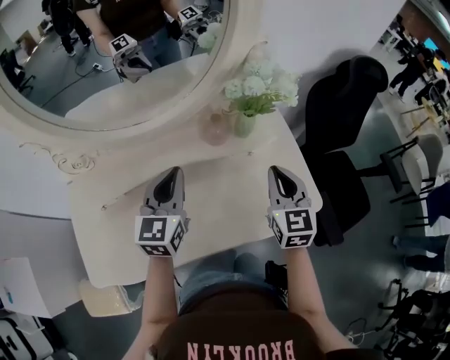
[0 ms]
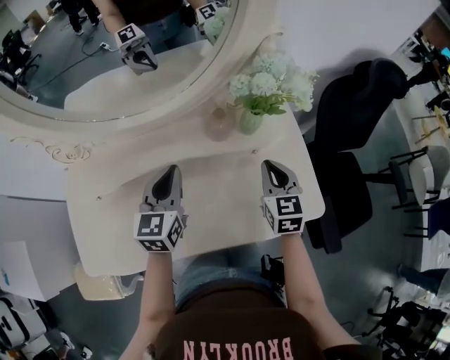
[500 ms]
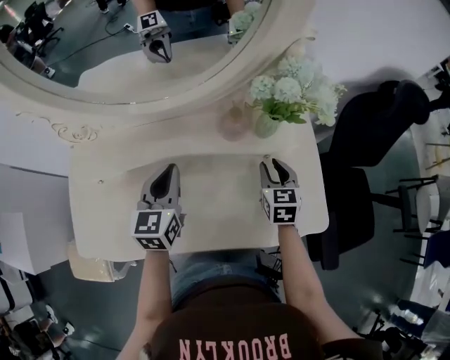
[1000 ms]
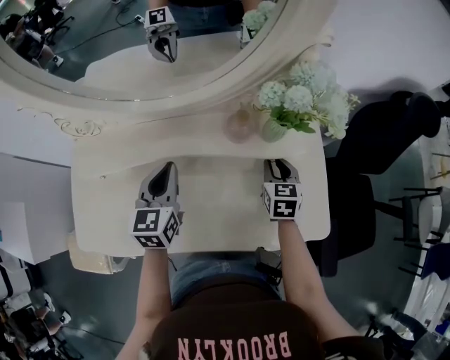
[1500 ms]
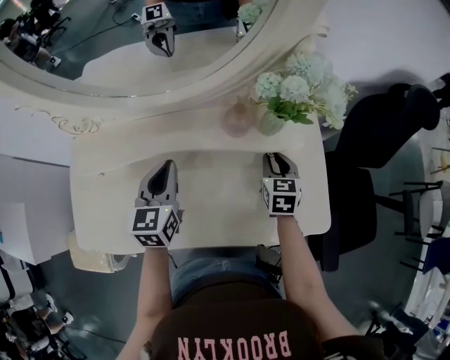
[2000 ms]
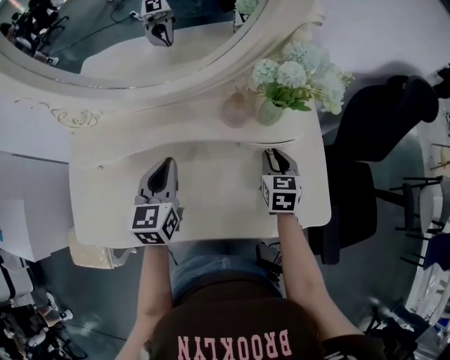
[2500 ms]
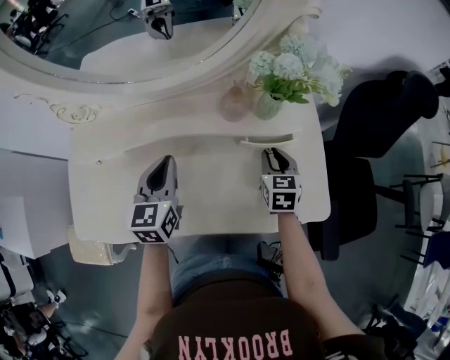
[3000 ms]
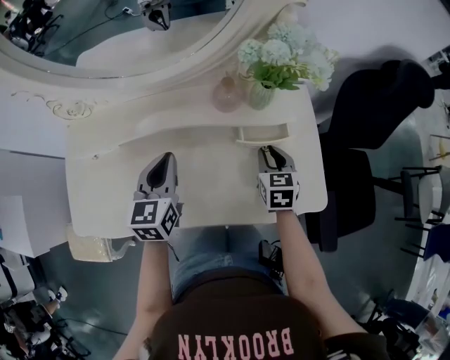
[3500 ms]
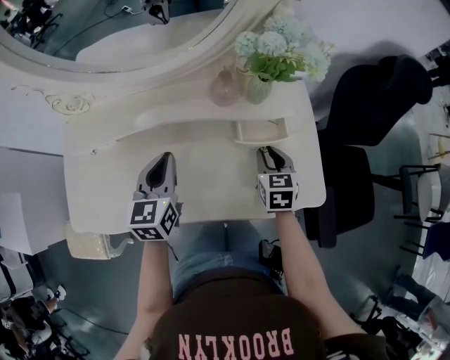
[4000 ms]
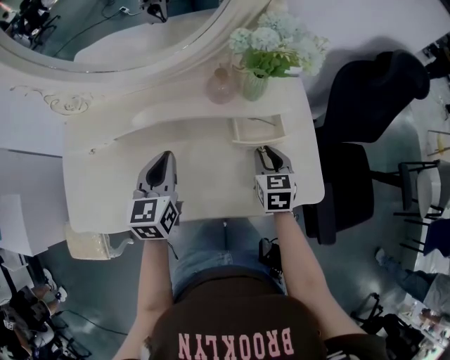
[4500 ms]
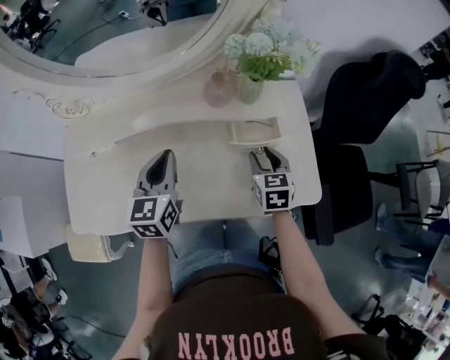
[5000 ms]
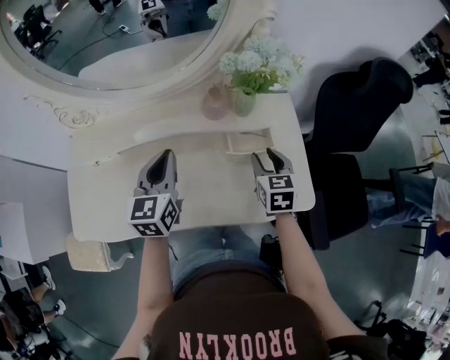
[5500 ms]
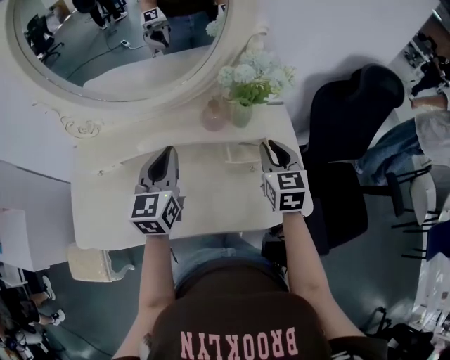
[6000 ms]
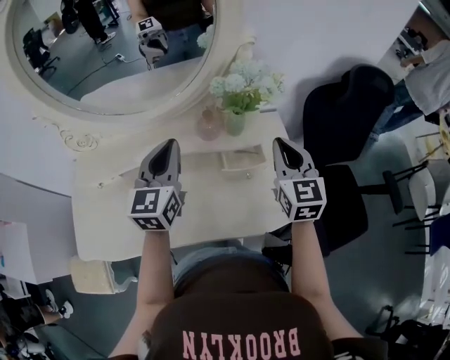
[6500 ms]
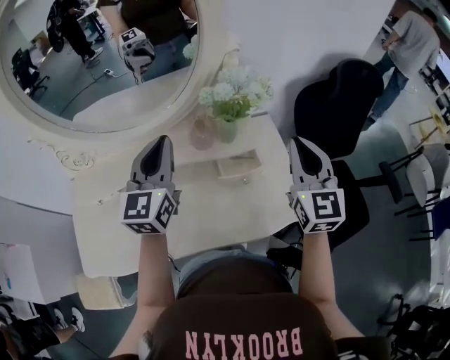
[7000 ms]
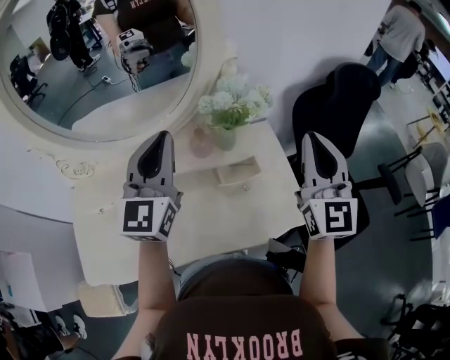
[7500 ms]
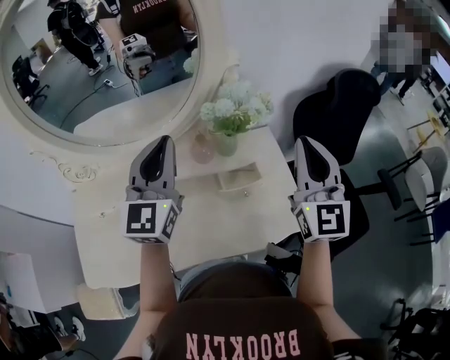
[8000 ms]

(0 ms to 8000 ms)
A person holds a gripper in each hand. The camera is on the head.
0 ms - 2000 ms: The right gripper goes some 20 cm downward and forward, and turns by some 20 degrees. The left gripper is displaced downward by some 10 cm.
2000 ms - 4000 ms: The grippers both shift backward by roughly 5 cm.
4000 ms - 6000 ms: The left gripper moves upward, roughly 10 cm; the right gripper travels upward by about 15 cm.
6000 ms - 8000 ms: Both grippers move upward, about 20 cm. The right gripper angles its fingers upward, by about 30 degrees; the left gripper swivels some 20 degrees.

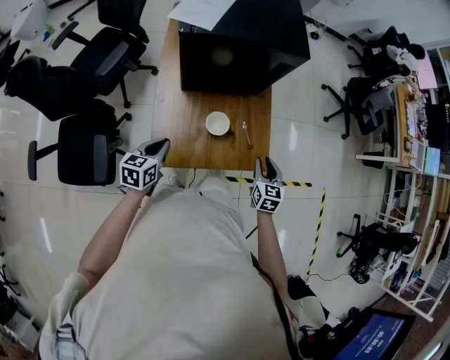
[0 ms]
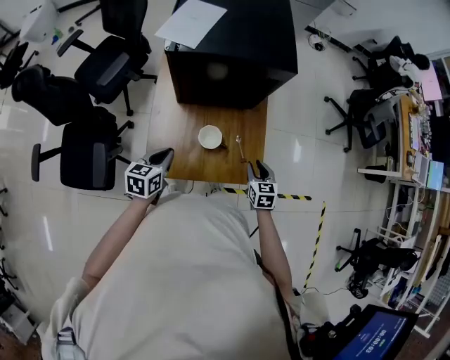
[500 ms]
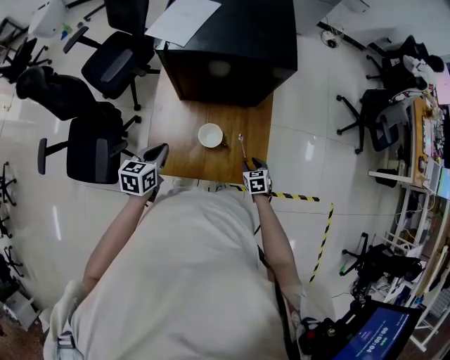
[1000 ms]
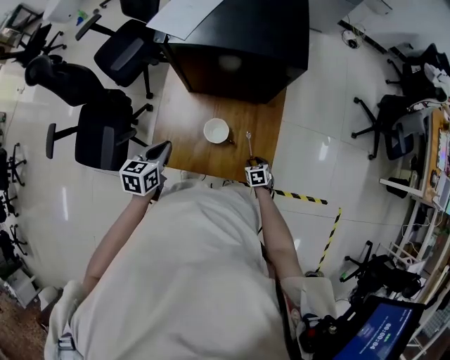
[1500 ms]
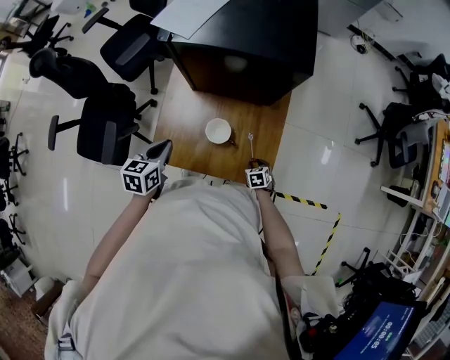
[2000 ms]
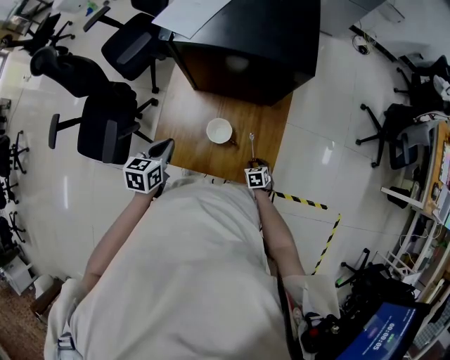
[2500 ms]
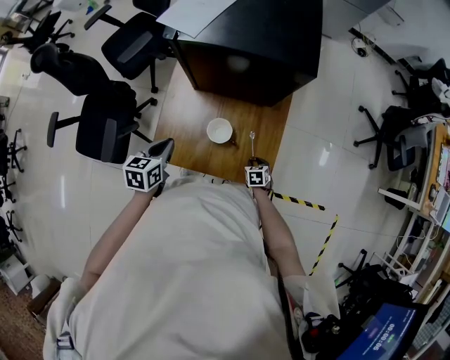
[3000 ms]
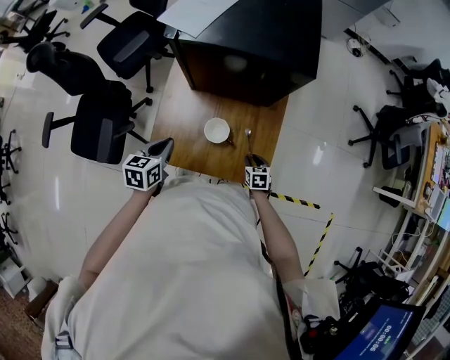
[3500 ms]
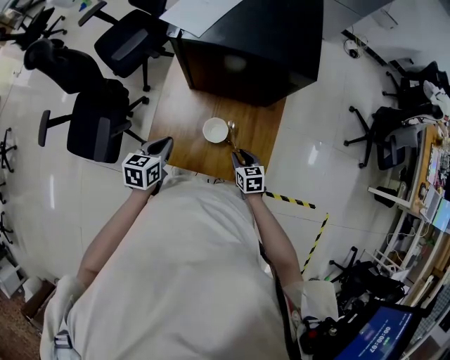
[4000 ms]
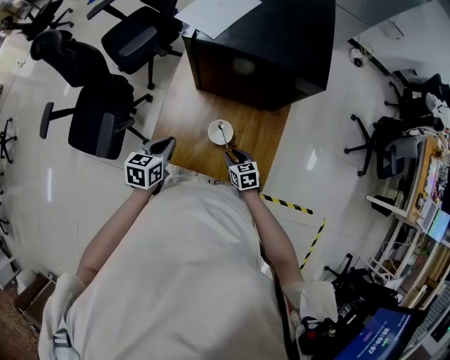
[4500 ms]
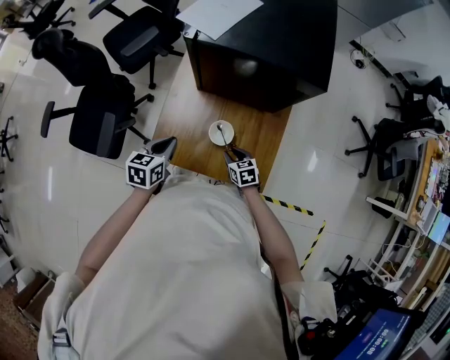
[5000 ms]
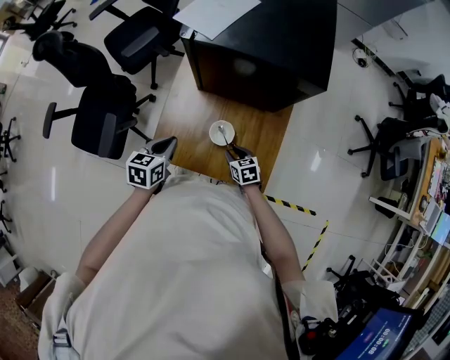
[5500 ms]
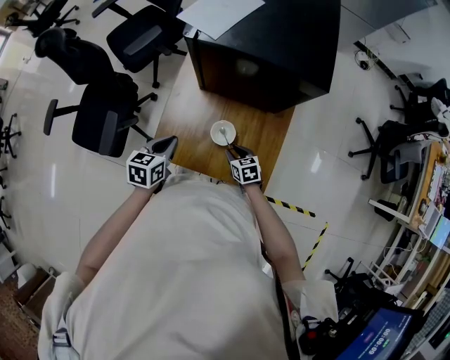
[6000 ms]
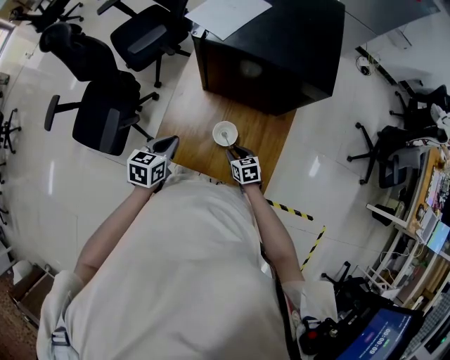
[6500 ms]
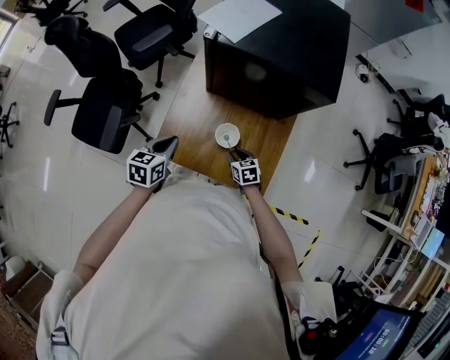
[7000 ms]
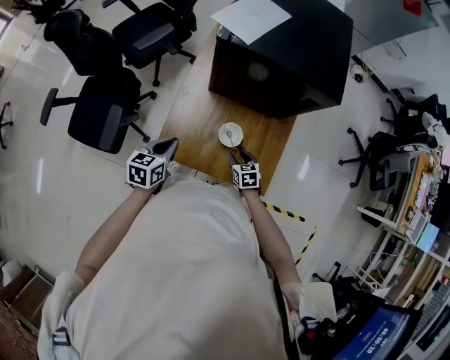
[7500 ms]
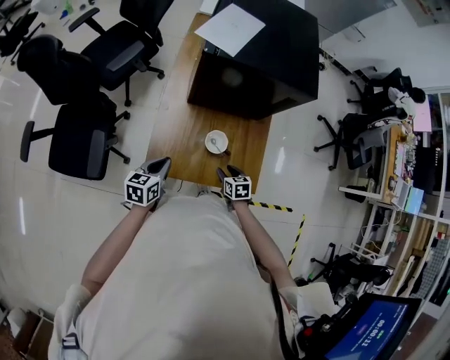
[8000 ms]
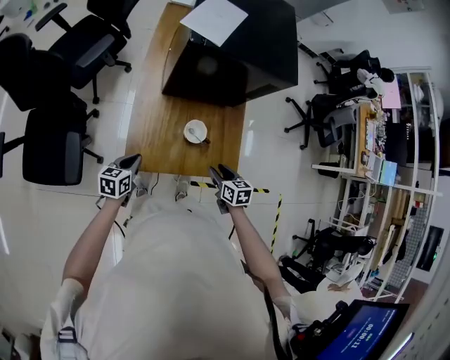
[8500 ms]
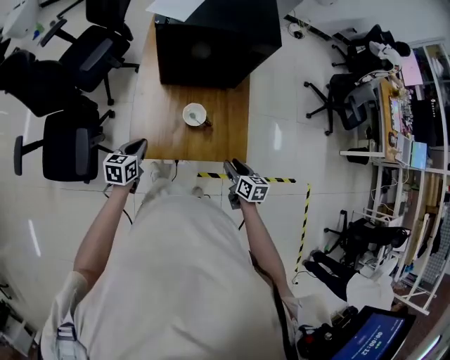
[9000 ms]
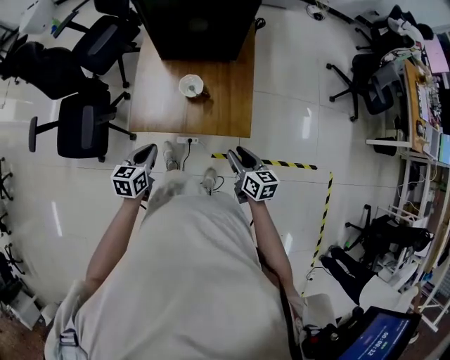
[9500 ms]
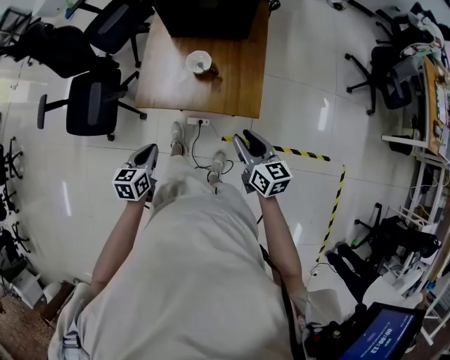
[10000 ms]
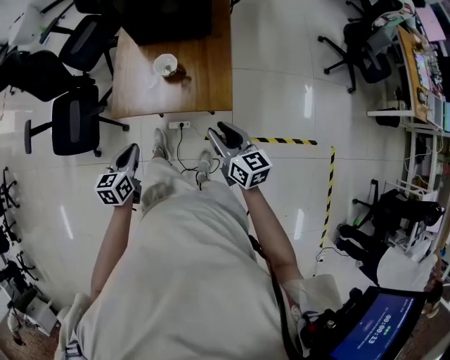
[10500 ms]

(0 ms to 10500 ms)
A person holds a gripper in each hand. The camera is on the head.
0 ms - 2000 ms: The right gripper goes roughly 25 cm downward, and points its fingers some 30 degrees further downward. The left gripper ends up some 5 cm from where it was.
2000 ms - 4000 ms: The right gripper goes roughly 15 cm upward and to the left, and rotates some 20 degrees.
4000 ms - 6500 ms: The right gripper is displaced to the left by roughly 5 cm.
6500 ms - 8500 ms: The left gripper heads to the left and downward, covering roughly 15 cm, while the right gripper goes roughly 15 cm upward and backward, and rotates about 30 degrees.
8500 ms - 10500 ms: The two grippers go some 25 cm backward, to the right and upward. The right gripper angles its fingers upward, by some 30 degrees.

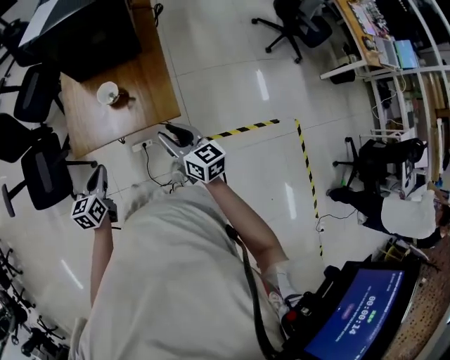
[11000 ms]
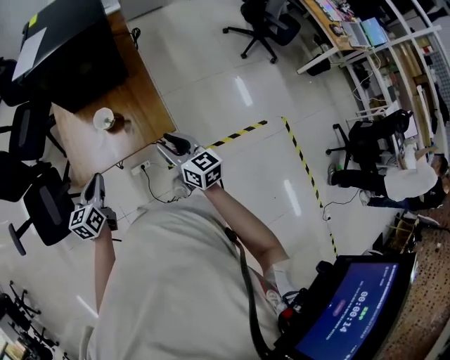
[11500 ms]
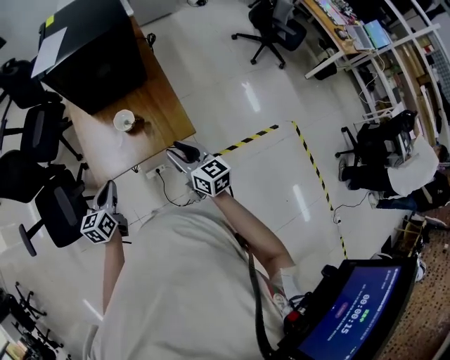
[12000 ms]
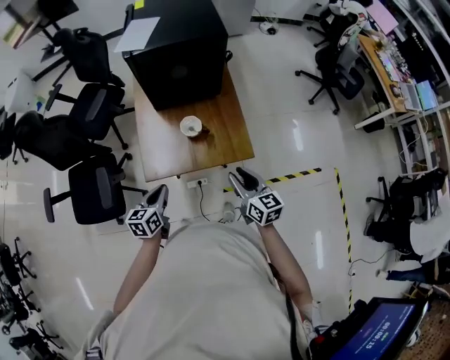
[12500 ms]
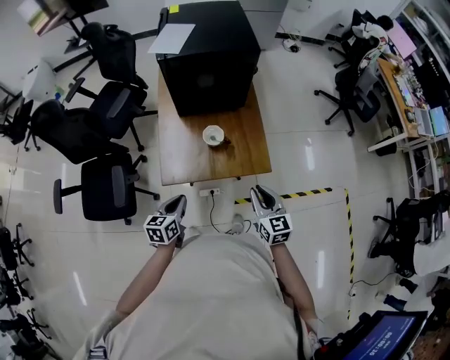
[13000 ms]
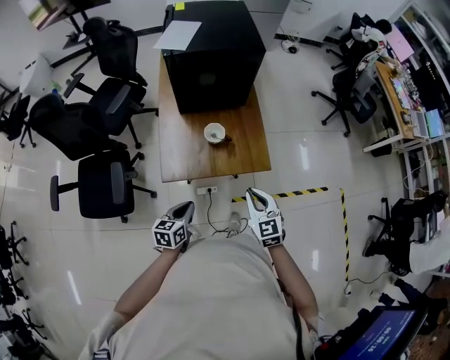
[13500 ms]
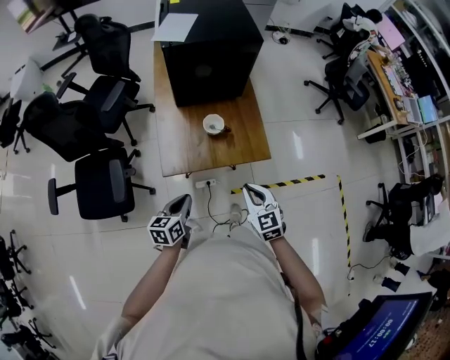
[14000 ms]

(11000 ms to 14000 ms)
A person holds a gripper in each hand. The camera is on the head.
11000 ms - 12500 ms: The two grippers go some 10 cm to the left.
12500 ms - 14000 ms: The left gripper is displaced backward by some 5 cm. The right gripper heads to the left and backward, covering some 10 cm, changes its angle by about 30 degrees, and closes up.

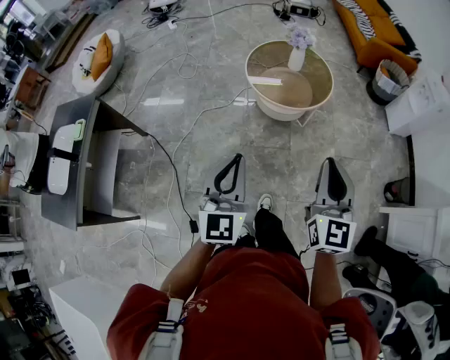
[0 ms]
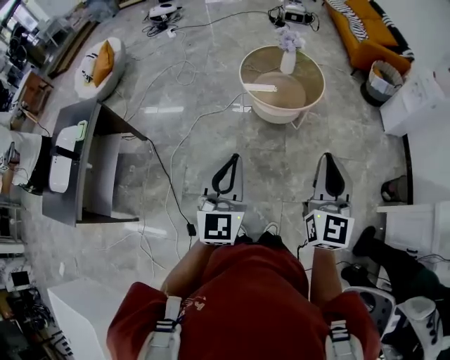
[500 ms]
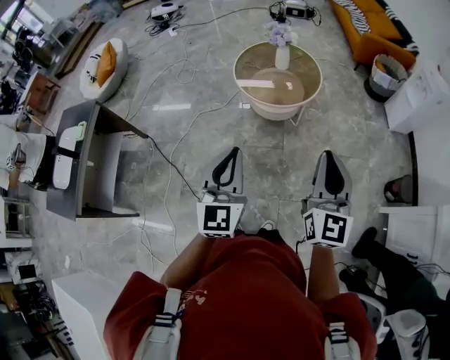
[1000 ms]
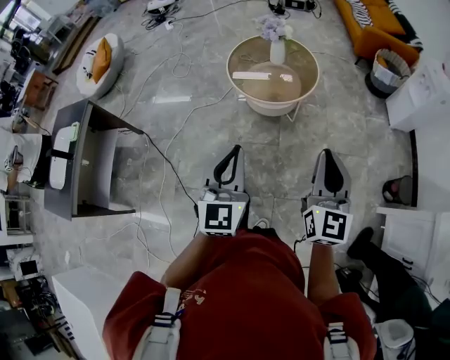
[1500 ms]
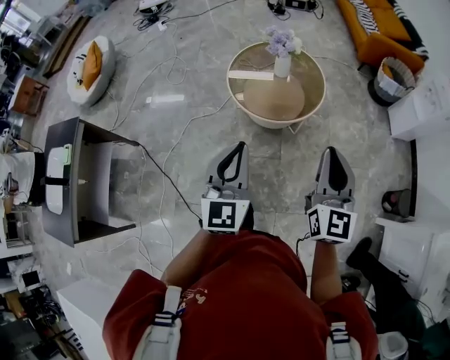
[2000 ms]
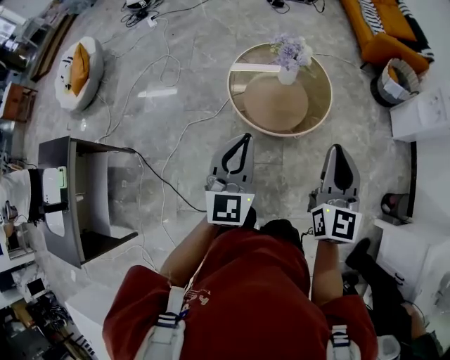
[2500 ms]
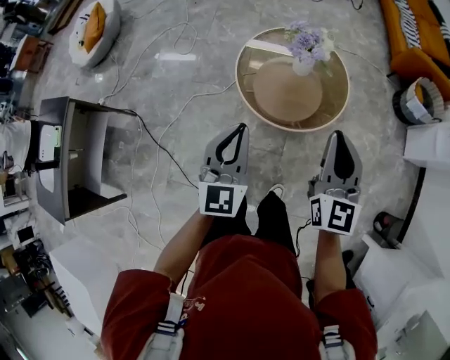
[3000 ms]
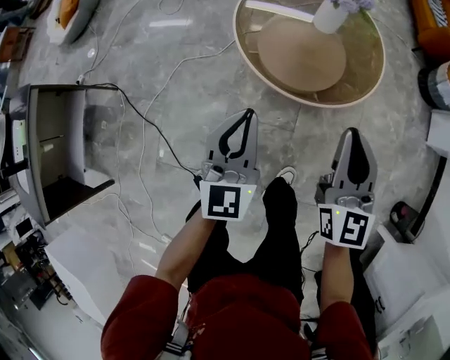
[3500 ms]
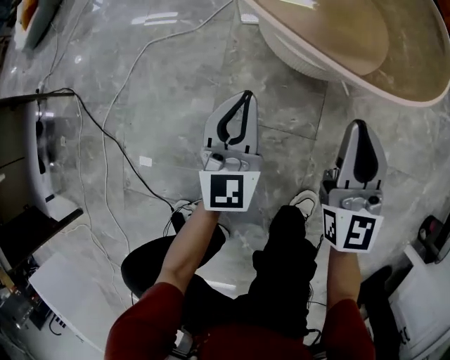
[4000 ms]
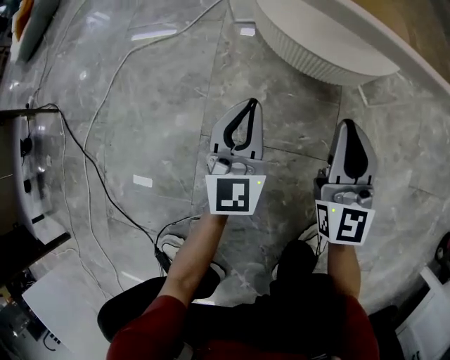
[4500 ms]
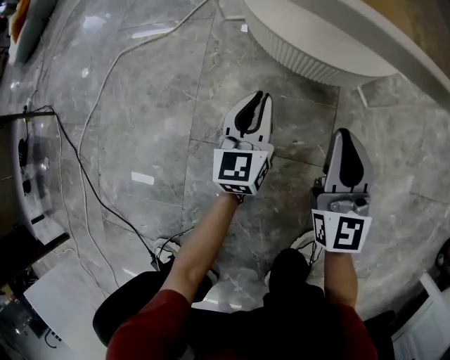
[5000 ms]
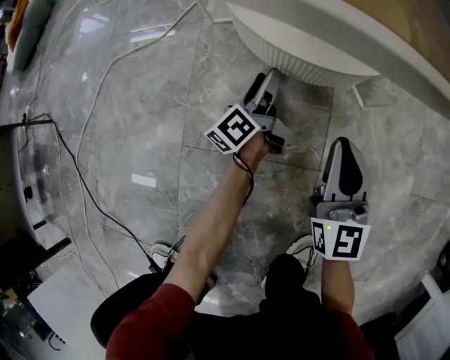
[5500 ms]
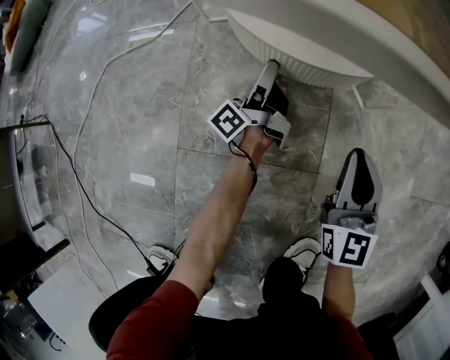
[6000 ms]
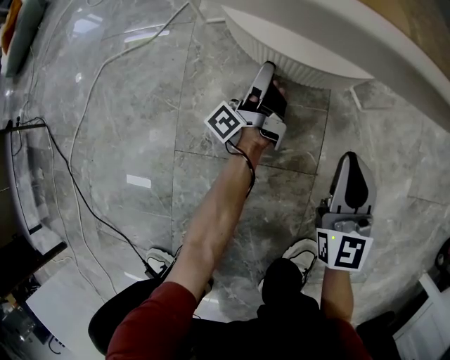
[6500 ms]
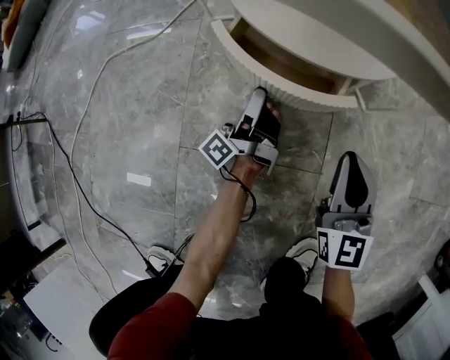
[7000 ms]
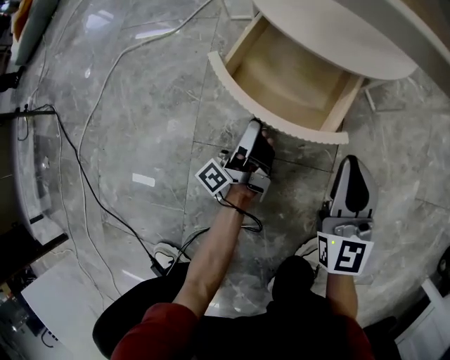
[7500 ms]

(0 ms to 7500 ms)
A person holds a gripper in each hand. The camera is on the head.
0 ms - 2000 ms: Both grippers travel together forward and to the right, about 20 cm.
2000 ms - 4000 ms: Both grippers move downward, approximately 60 cm.
4000 ms - 5500 ms: The right gripper goes approximately 25 cm downward. The left gripper shifts approximately 35 cm downward and forward, twists about 70 degrees counterclockwise, seen from behind, and opens up.
5500 ms - 7500 ms: The left gripper travels backward by roughly 10 cm, and changes its angle by some 30 degrees.
